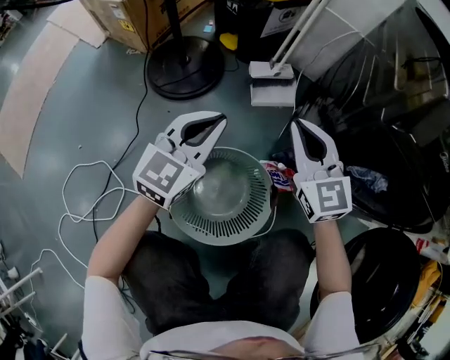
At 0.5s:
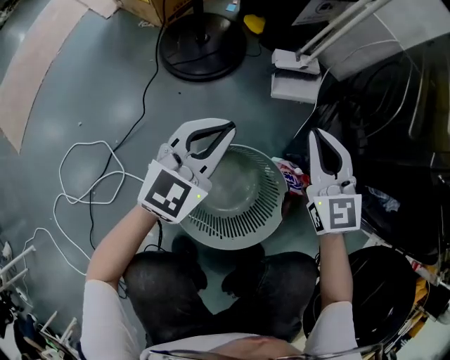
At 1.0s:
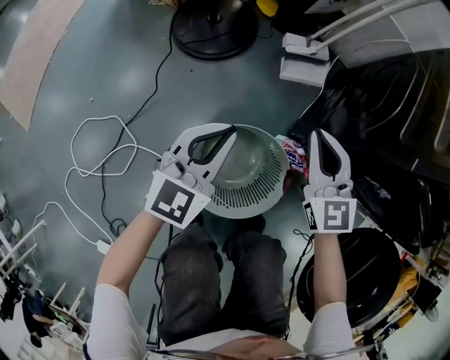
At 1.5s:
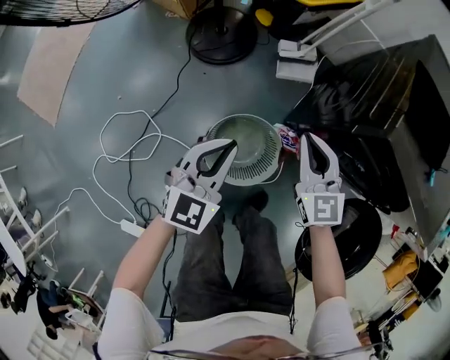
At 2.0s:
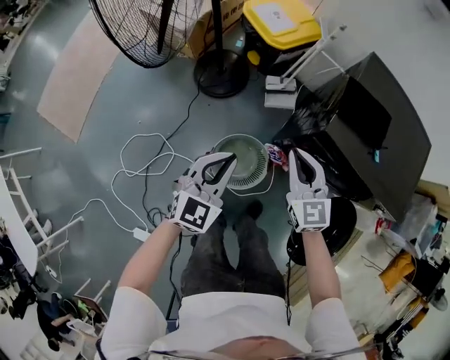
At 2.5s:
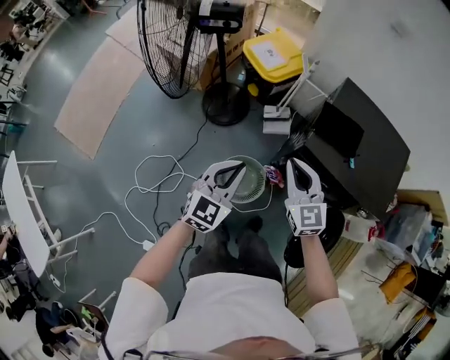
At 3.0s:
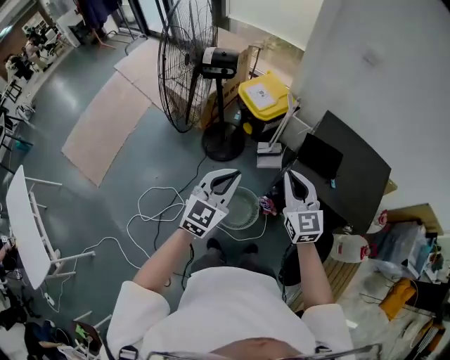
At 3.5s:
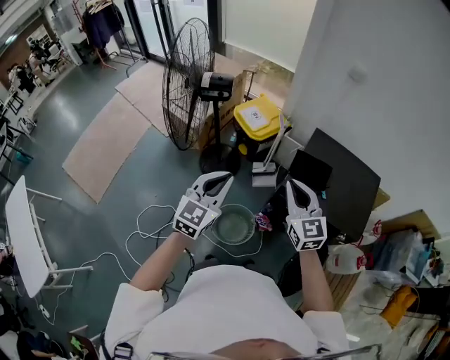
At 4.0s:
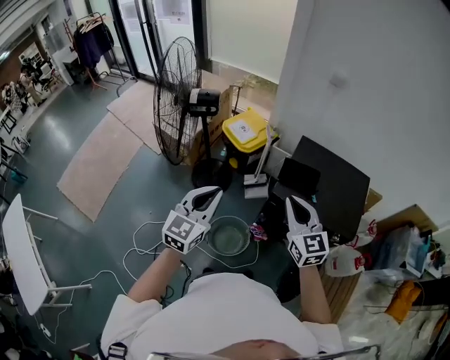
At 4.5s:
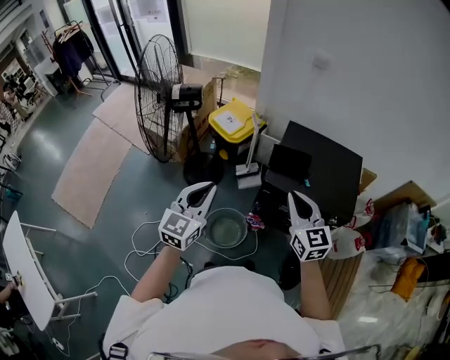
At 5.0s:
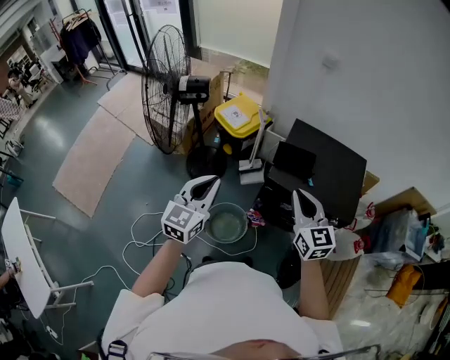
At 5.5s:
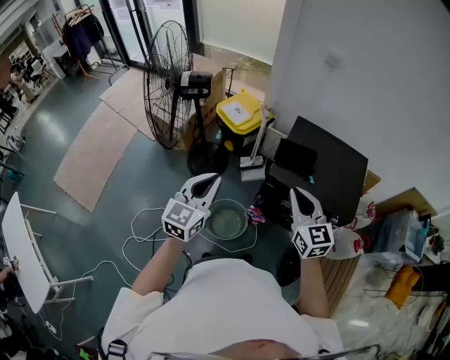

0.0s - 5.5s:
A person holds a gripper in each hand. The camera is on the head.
0.0s - 2.0s: Both grippers move upward, roughly 40 cm.
2.0s - 3.5s: The two grippers go some 35 cm upward.
3.5s - 5.5s: The right gripper goes approximately 10 cm to the right and backward.

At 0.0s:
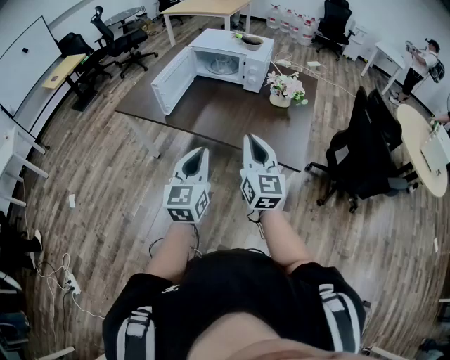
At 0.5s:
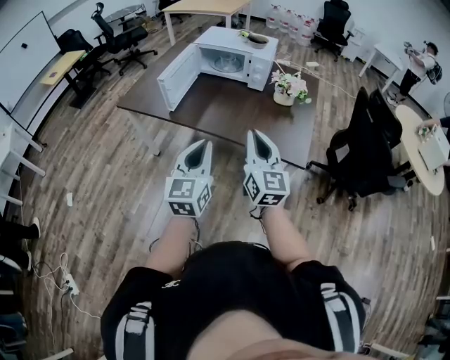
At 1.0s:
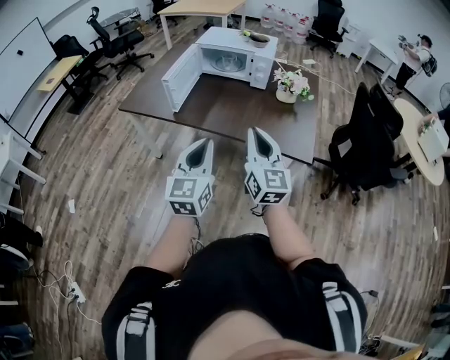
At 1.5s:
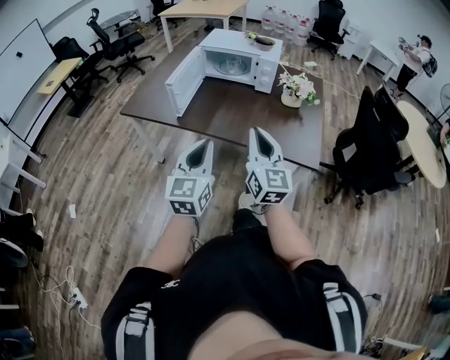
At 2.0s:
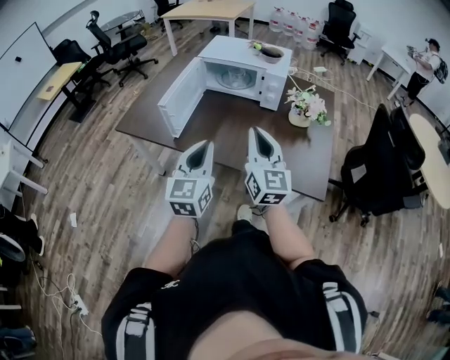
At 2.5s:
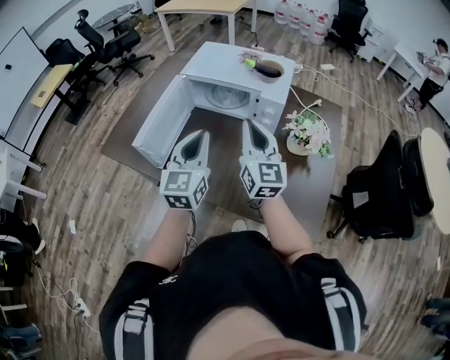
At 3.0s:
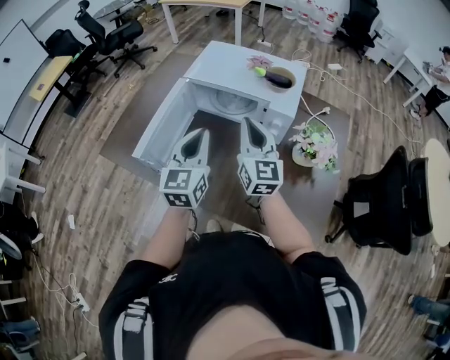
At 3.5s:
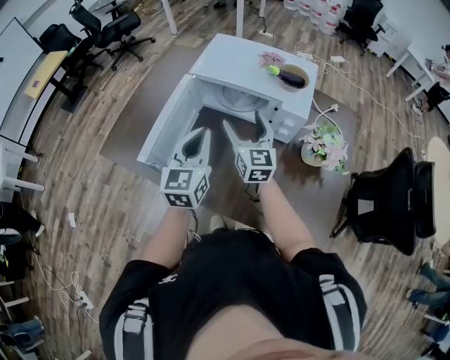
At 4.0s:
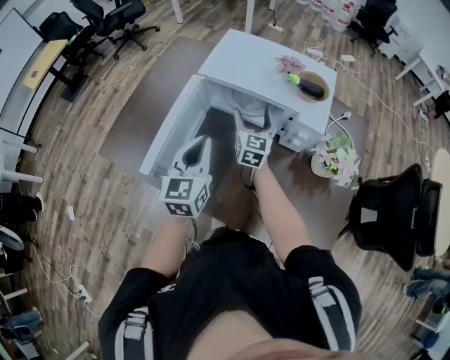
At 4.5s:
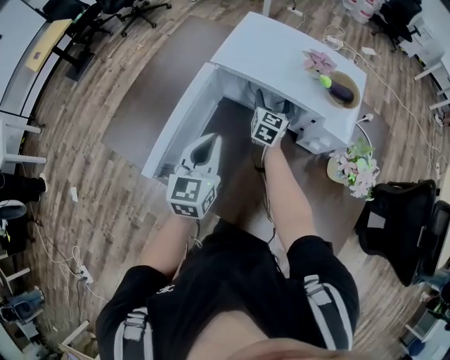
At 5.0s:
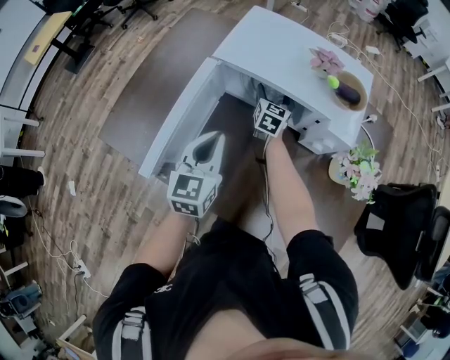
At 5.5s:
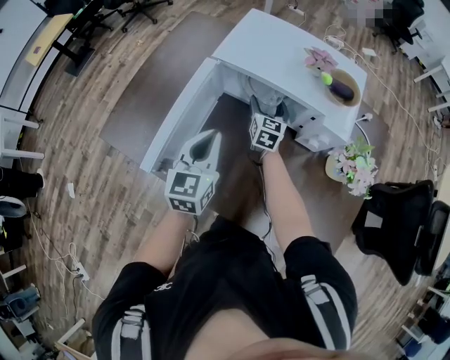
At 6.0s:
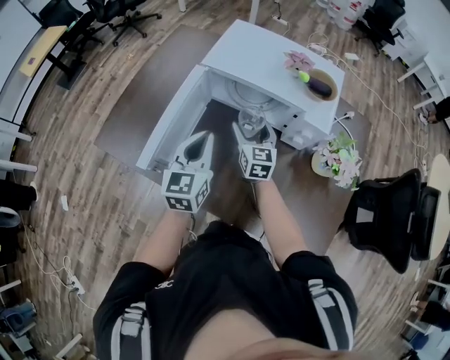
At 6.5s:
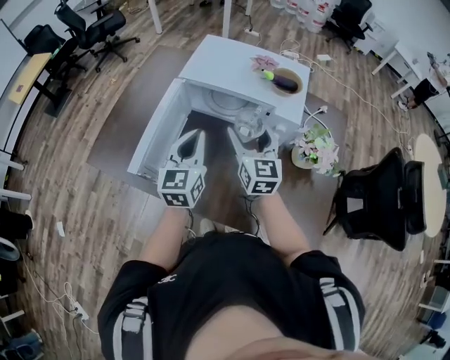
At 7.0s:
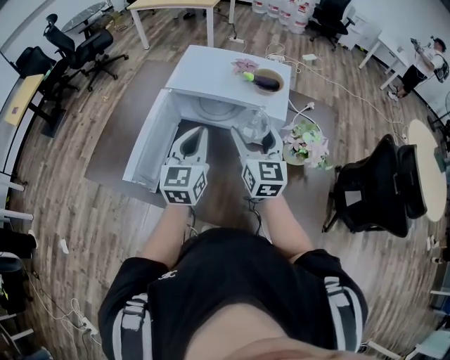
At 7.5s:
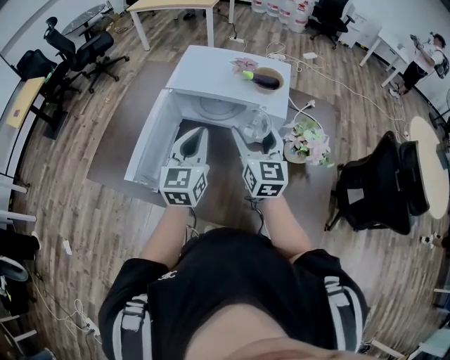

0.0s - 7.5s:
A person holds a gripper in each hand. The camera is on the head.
0.0s - 2.0s: The grippers both shift forward and to the left by roughly 20 cm.
2.0s - 4.0s: The two grippers go about 40 cm forward. The right gripper rotates some 20 degrees, and opens up.
4.0s - 5.5s: The left gripper ends up some 5 cm from where it was; the right gripper moves downward and forward, about 10 cm.
5.5s - 7.5s: The right gripper travels upward, backward and to the right by roughly 35 cm. Meanwhile the left gripper is displaced upward and to the right by about 15 cm.

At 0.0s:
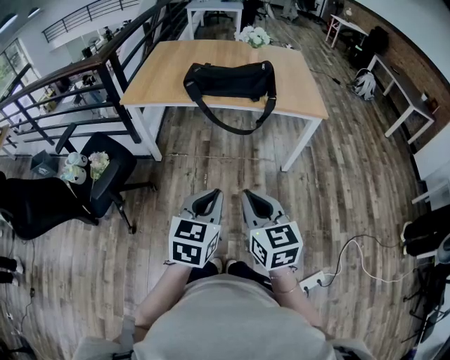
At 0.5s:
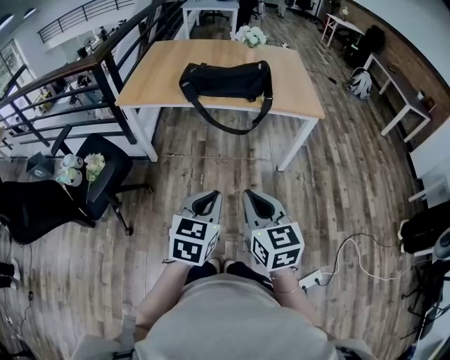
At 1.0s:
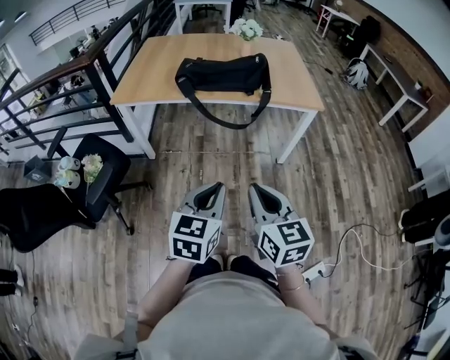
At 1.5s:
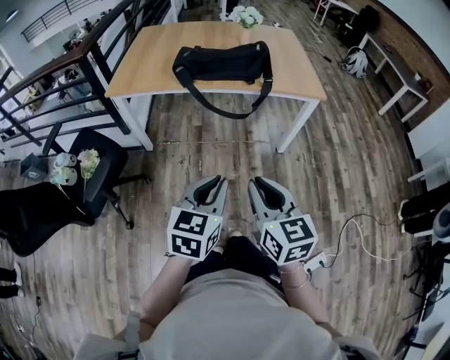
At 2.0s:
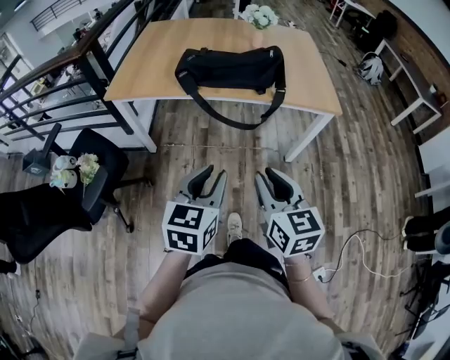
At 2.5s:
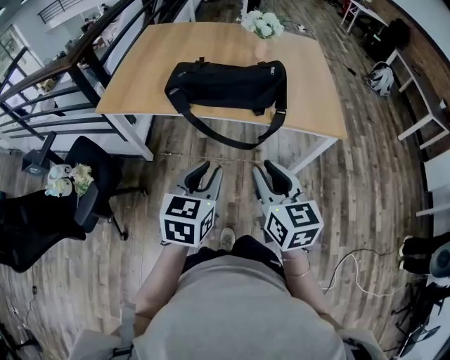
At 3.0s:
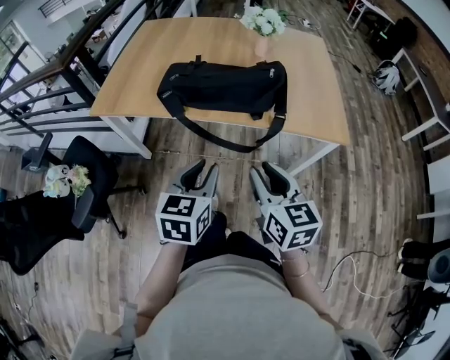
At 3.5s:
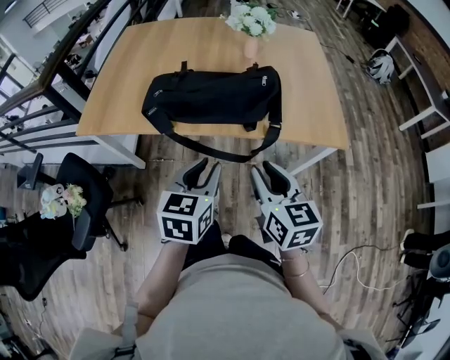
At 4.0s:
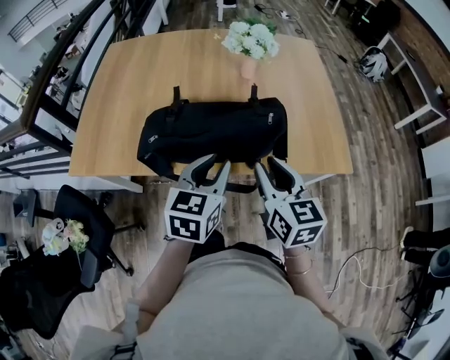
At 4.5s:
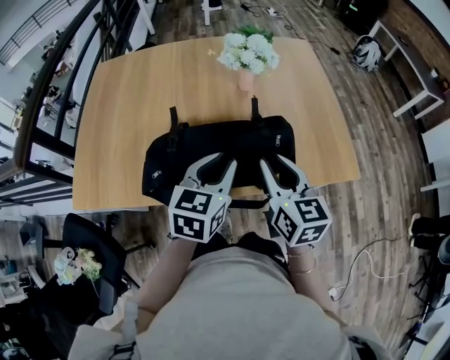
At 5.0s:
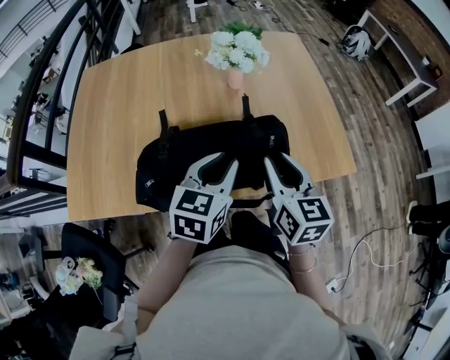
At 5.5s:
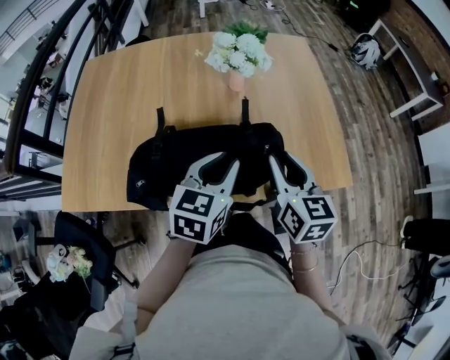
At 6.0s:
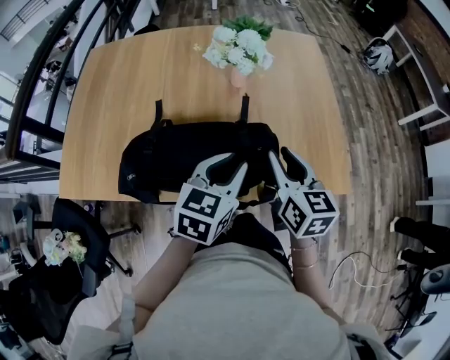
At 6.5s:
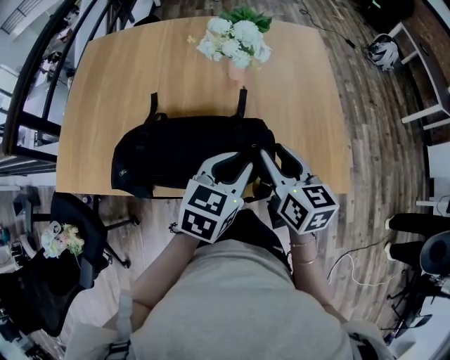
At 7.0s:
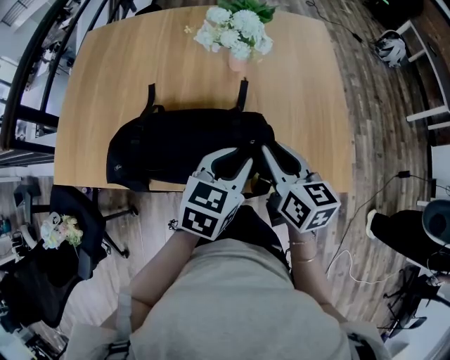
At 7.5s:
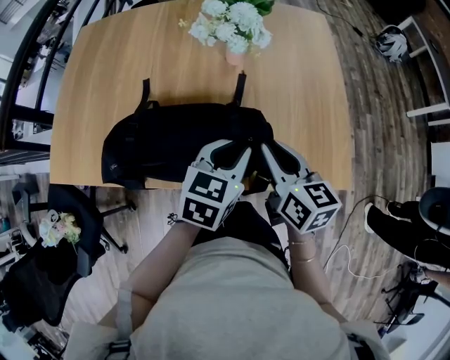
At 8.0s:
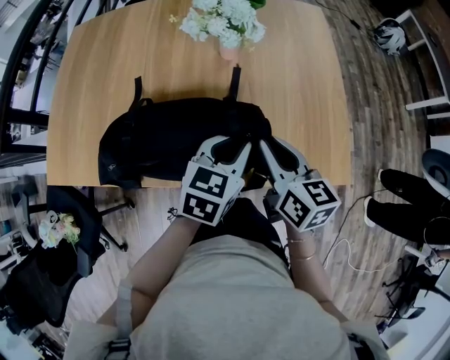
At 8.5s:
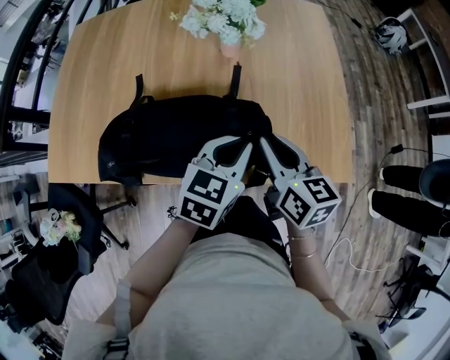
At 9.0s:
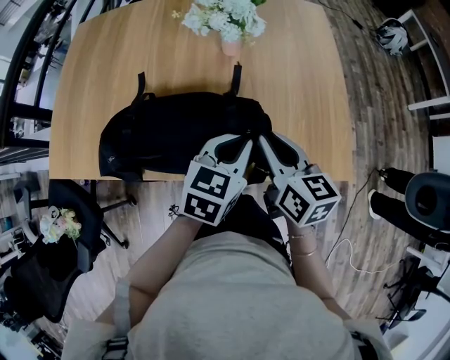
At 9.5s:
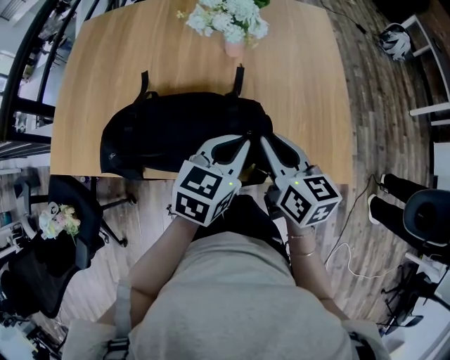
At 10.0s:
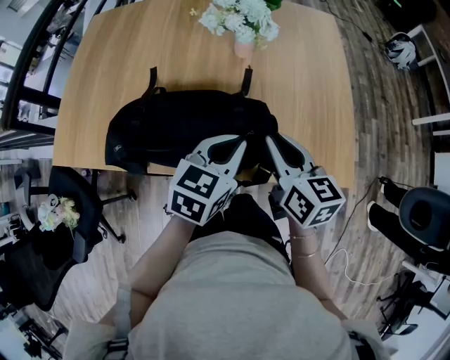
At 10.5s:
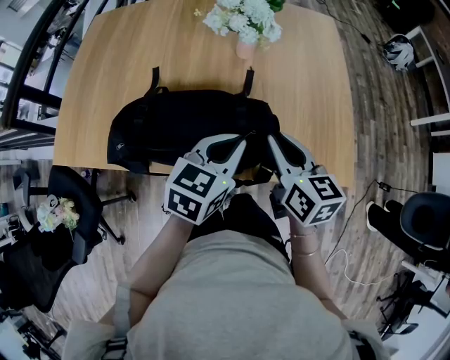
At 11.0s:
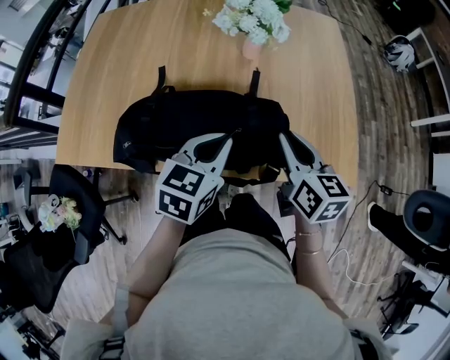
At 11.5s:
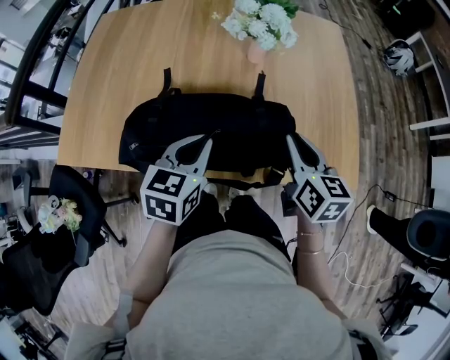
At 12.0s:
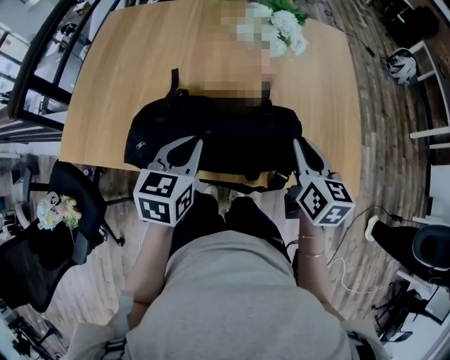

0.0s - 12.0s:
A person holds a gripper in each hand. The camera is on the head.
0.0s - 2.0s: Both grippers move forward, about 15 cm.
2.0s - 4.0s: The grippers both shift forward by some 40 cm.
4.0s - 6.0s: The right gripper moves forward, some 15 cm. Meanwhile the left gripper goes roughly 15 cm forward and to the right.
6.0s - 8.0s: The left gripper shifts by about 10 cm.
8.0s - 10.0s: The grippers move only a little.
10.0s - 12.0s: The left gripper shifts approximately 15 cm to the left.

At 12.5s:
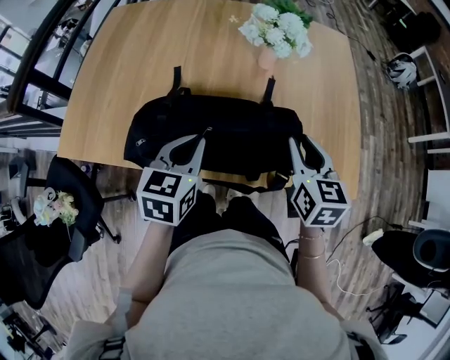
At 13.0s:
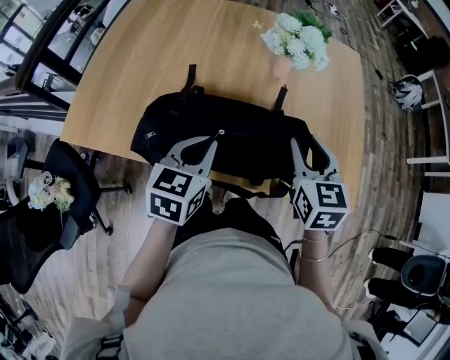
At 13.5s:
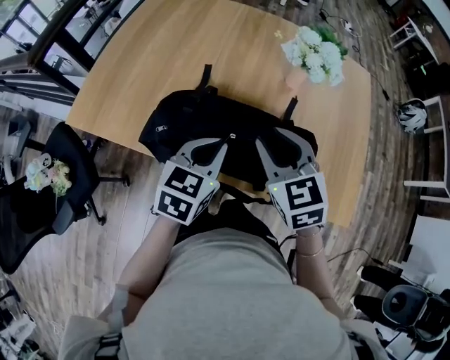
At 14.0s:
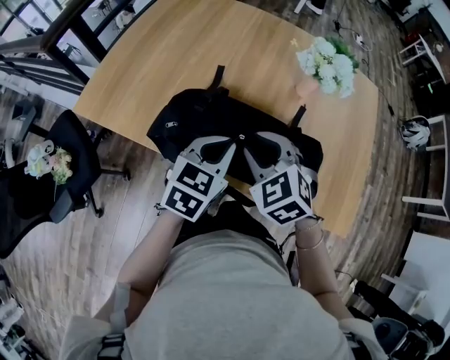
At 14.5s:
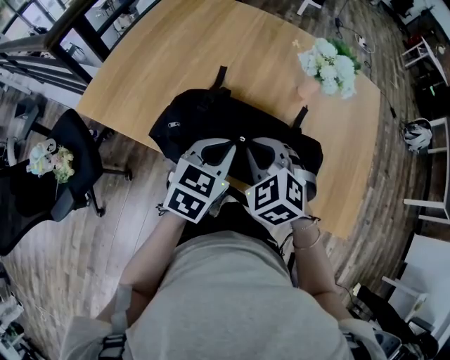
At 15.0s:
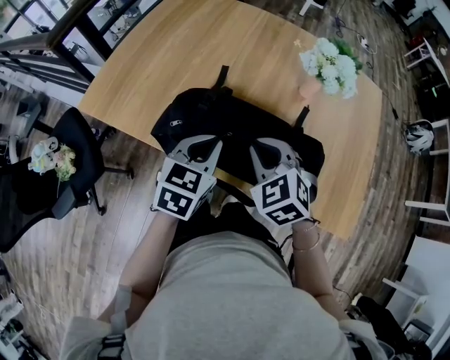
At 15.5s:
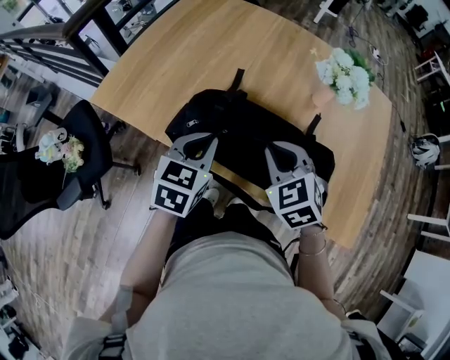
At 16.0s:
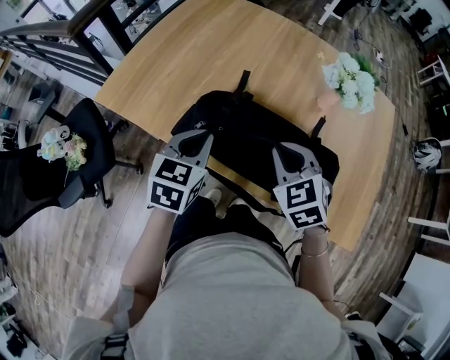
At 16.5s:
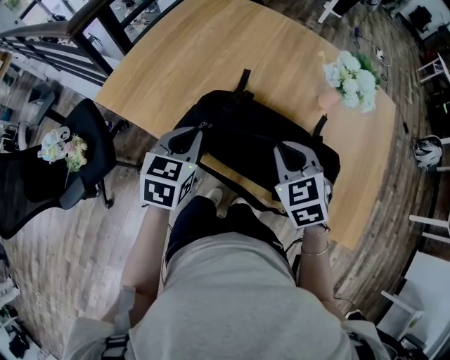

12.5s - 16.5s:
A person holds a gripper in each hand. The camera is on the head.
12.5s - 14.5s: The right gripper is displaced to the left by about 20 cm, and rotates around the line of its fingers by roughly 60 degrees, counterclockwise from behind.
14.5s - 16.5s: The left gripper moves to the left, some 15 cm.
